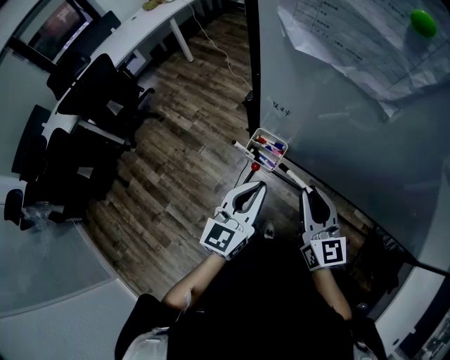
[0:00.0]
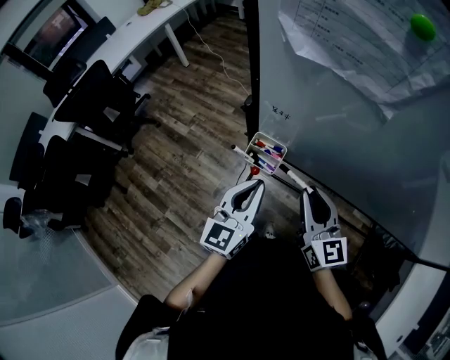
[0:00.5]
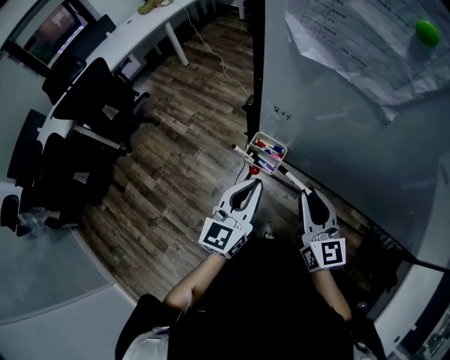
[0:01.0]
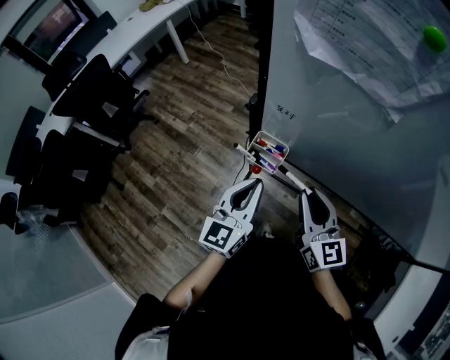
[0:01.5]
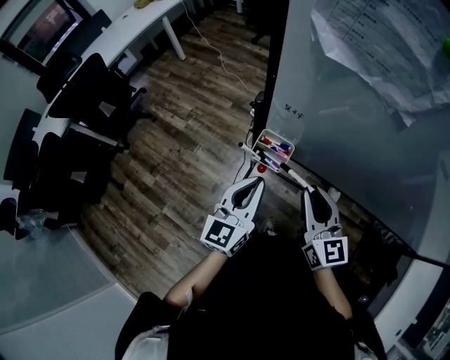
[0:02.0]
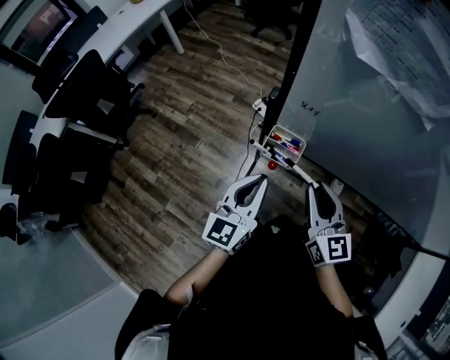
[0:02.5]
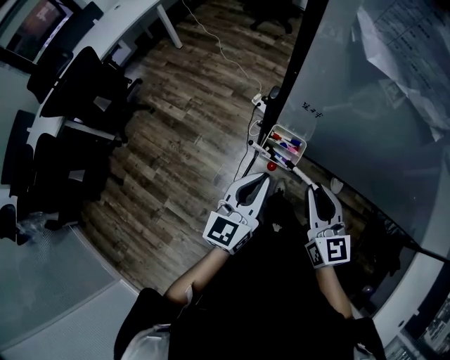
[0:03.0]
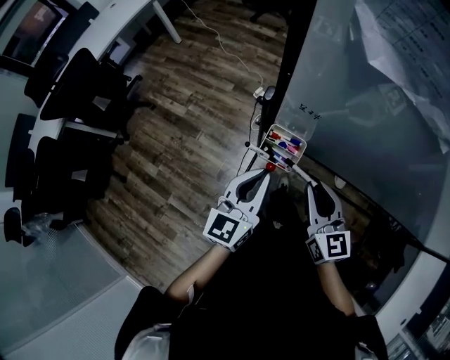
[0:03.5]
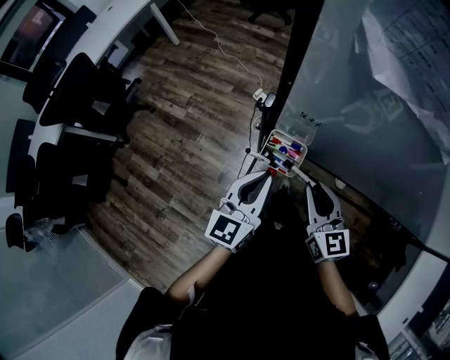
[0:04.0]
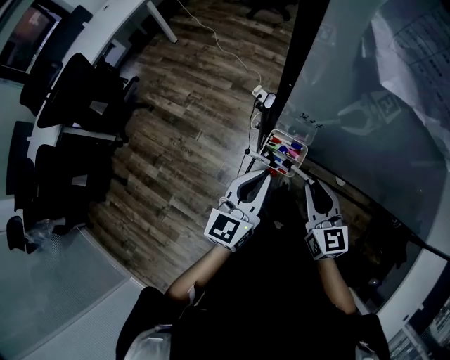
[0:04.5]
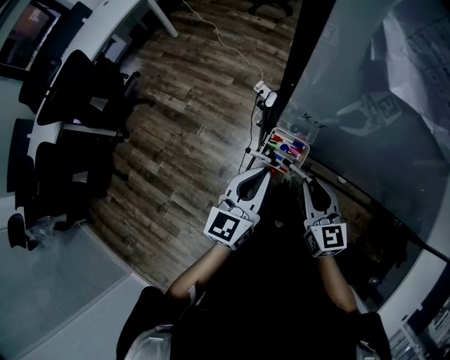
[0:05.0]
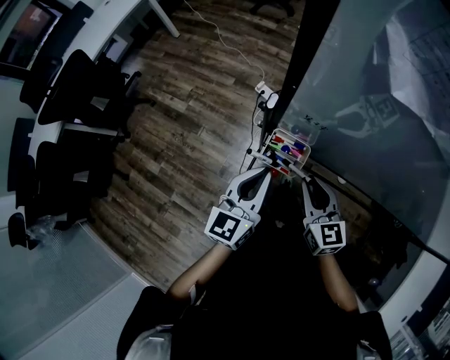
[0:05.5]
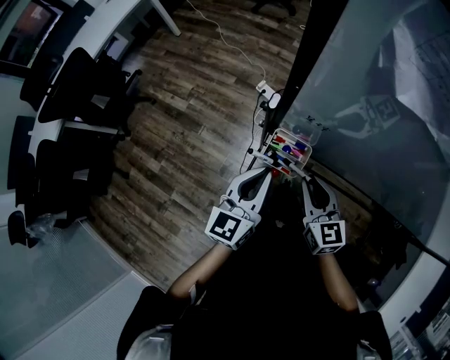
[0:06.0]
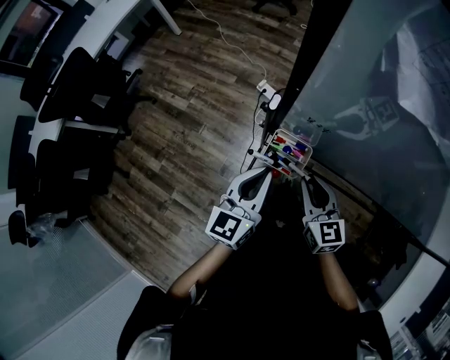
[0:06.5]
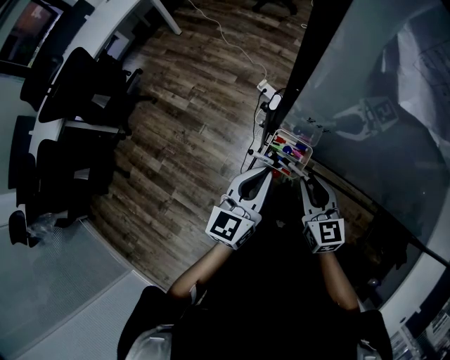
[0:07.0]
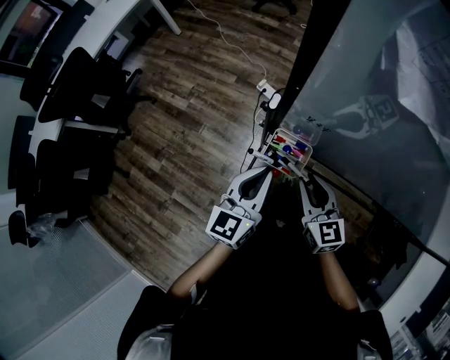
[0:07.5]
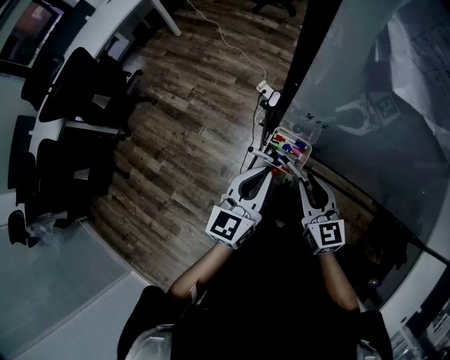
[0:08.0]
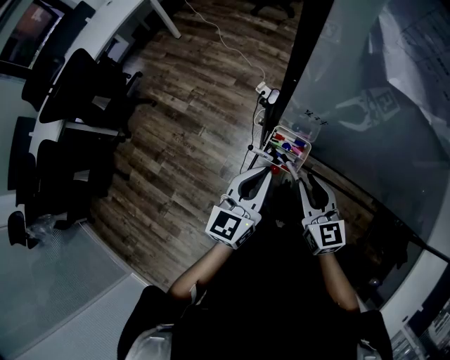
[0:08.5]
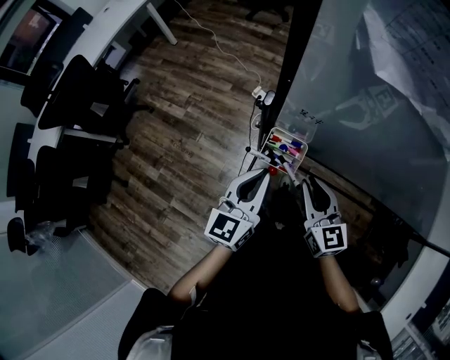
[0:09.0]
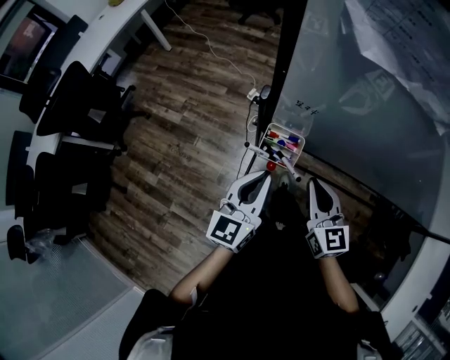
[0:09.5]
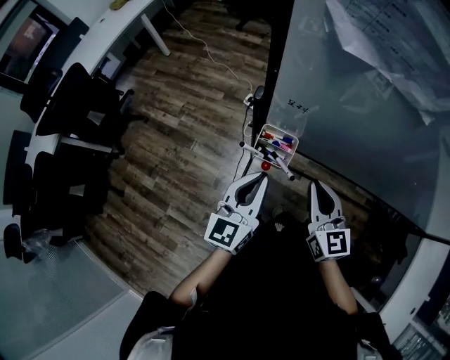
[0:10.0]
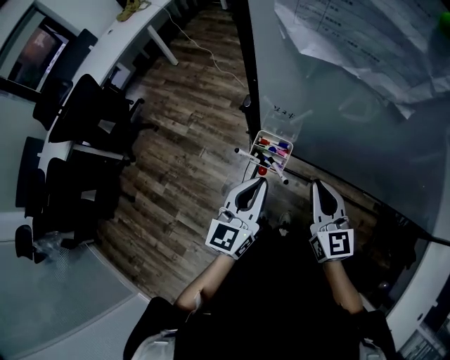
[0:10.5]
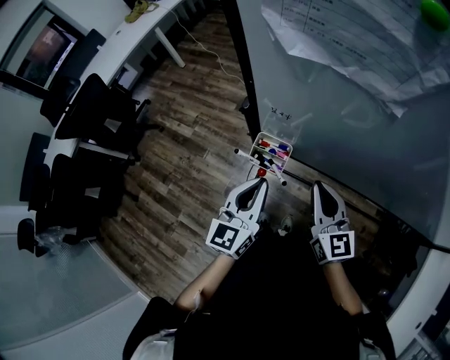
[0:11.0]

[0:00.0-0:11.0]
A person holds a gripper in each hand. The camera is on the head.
0:00.0 to 0:02.0: There are only small adjustments of the grippers.
0:02.0 to 0:03.5: The right gripper travels downward by approximately 5 cm.
0:03.5 to 0:05.5: The right gripper ends up some 5 cm from where it was.
0:05.5 to 0:07.5: Neither gripper changes place.
0:07.5 to 0:09.0: The grippers make only small movements.
0:09.0 to 0:11.0: The right gripper shifts about 10 cm to the right and upward; the left gripper changes place by some 5 cm.

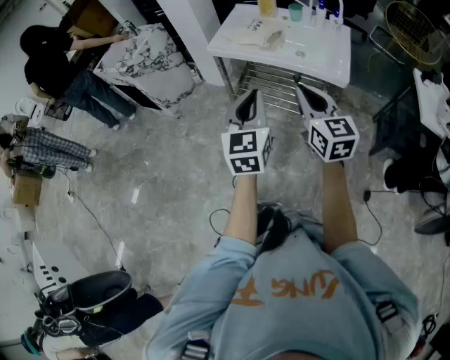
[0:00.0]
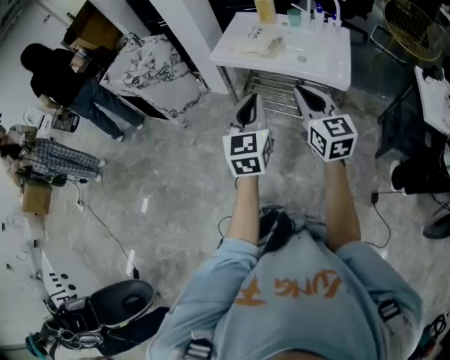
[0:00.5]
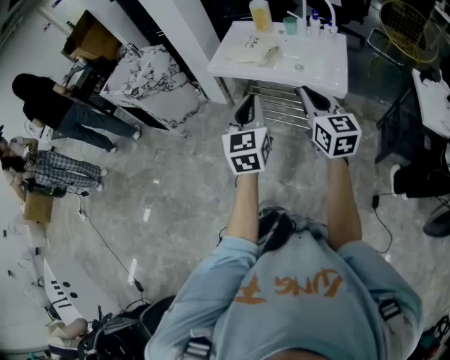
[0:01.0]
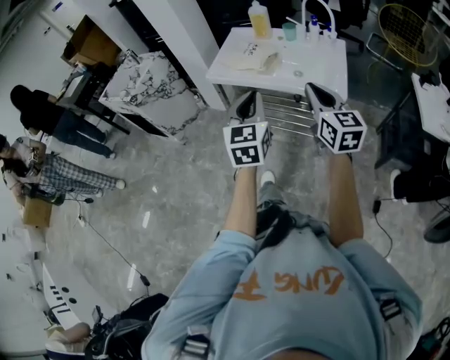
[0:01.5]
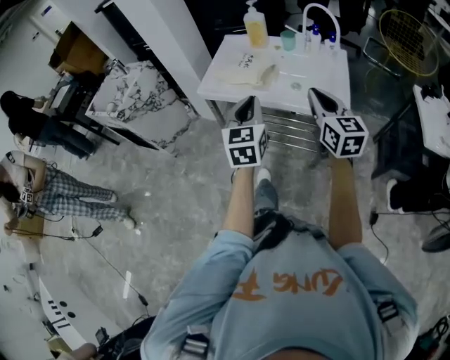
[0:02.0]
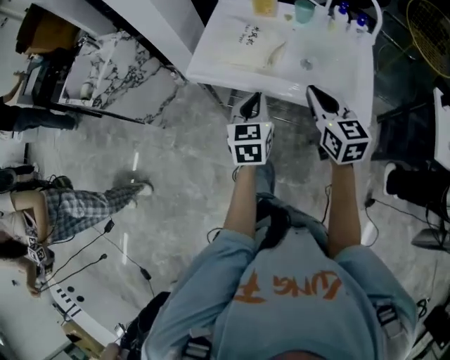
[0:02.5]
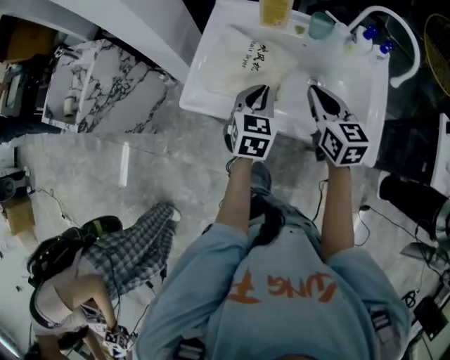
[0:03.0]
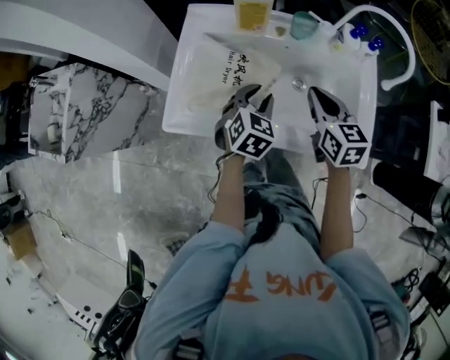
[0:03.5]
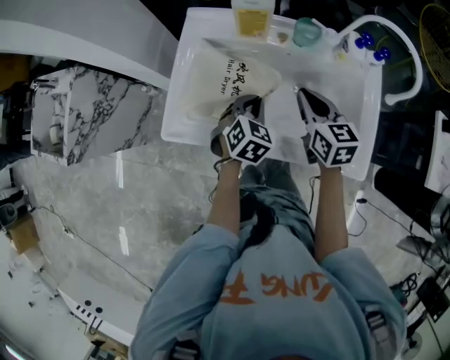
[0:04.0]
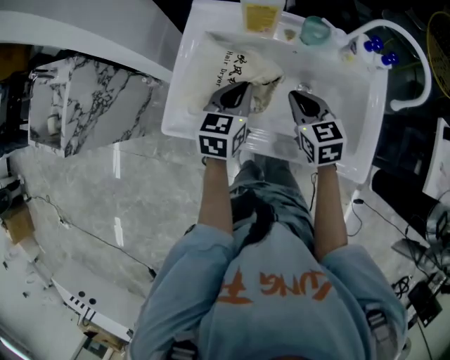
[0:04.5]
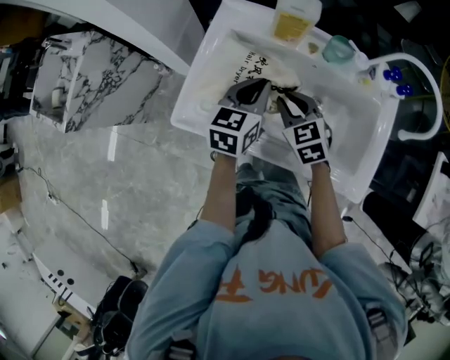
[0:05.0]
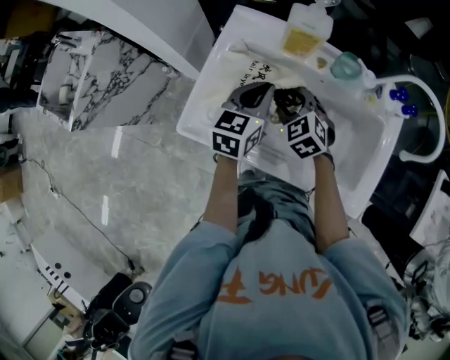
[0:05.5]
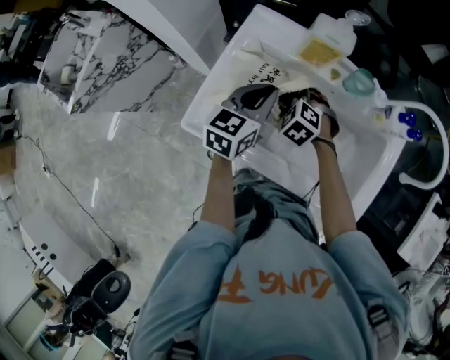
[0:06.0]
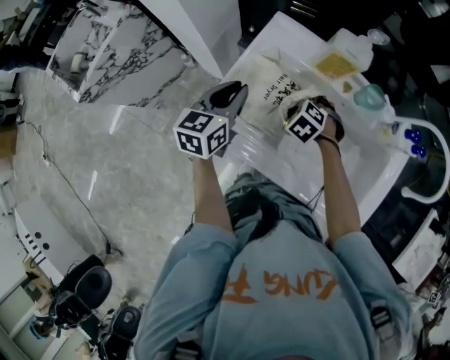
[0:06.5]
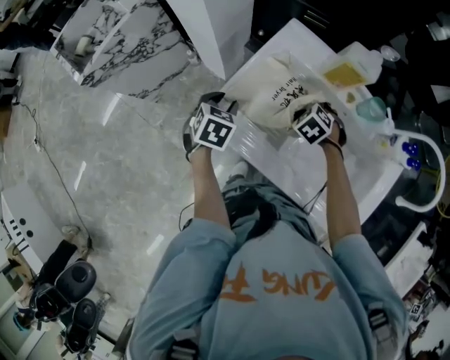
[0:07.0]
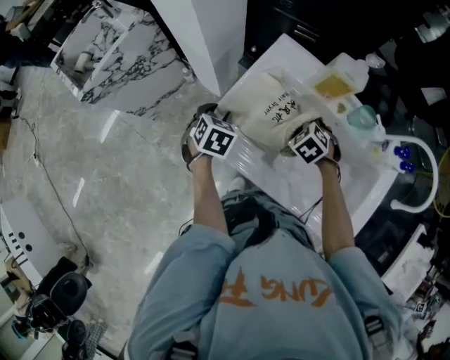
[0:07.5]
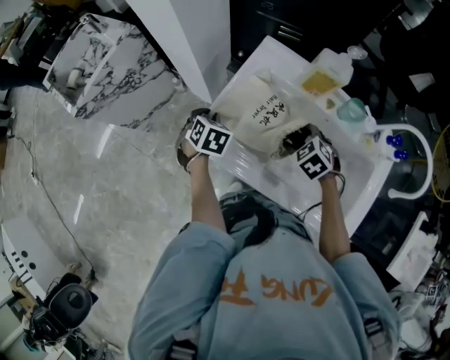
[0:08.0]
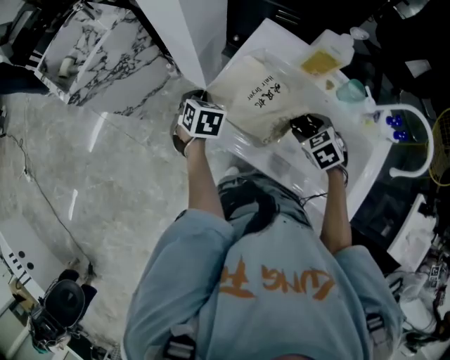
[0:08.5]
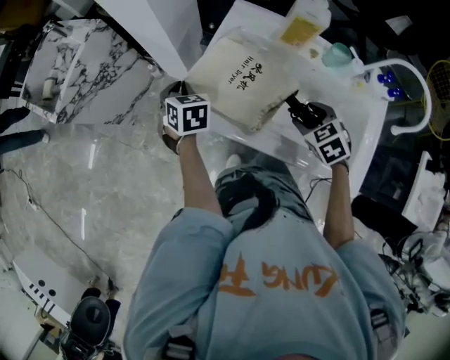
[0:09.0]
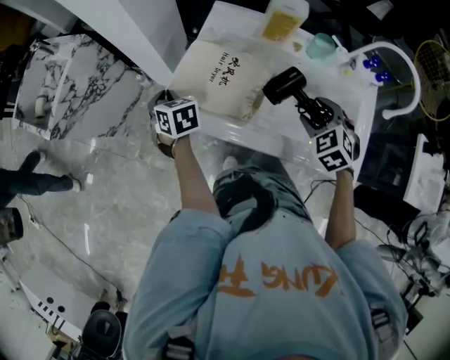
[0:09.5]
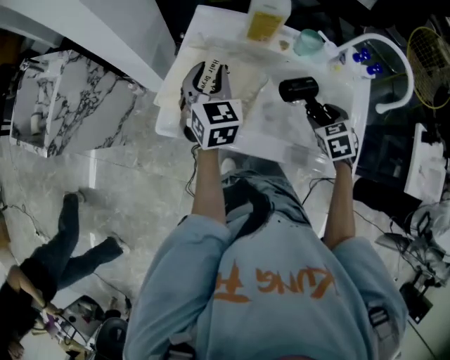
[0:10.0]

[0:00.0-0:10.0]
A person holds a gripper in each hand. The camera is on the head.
0:00.0 to 0:02.0: The left gripper moves forward, approximately 20 cm. Meanwhile the right gripper moves forward and to the right, some 20 cm.
0:02.0 to 0:04.0: Both grippers travel together forward and downward, approximately 40 cm. The left gripper tips its fingers downward by roughly 40 degrees, and opens and closes again; the right gripper turns by some 30 degrees.
0:04.0 to 0:06.0: The left gripper is displaced to the left, forward and upward by about 15 cm, and rotates some 40 degrees. Meanwhile the right gripper shifts some 20 cm to the left, downward and forward, twists about 60 degrees counterclockwise, seen from behind, and opens.
0:06.0 to 0:08.0: The right gripper shifts by some 5 cm; the left gripper moves approximately 20 cm, and tilts its fingers some 40 degrees downward.
0:08.0 to 0:10.0: The left gripper changes place by approximately 20 cm, and tilts its fingers some 40 degrees upward. Meanwhile the right gripper moves approximately 20 cm, and swivels roughly 40 degrees.

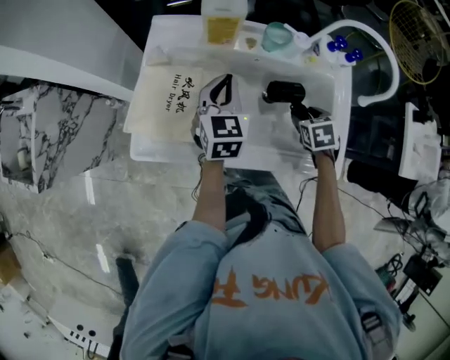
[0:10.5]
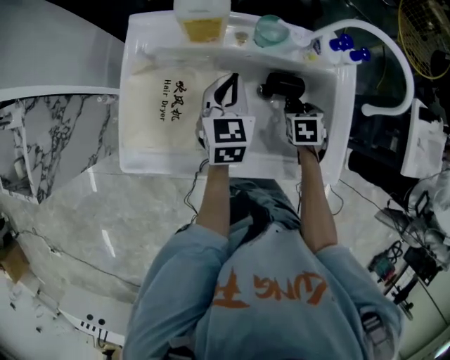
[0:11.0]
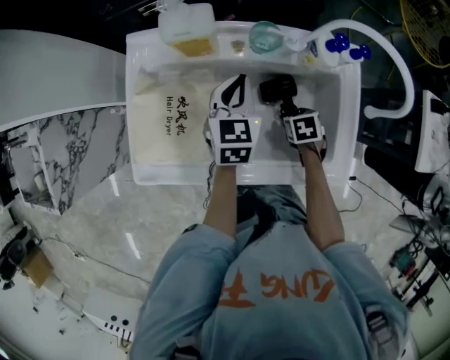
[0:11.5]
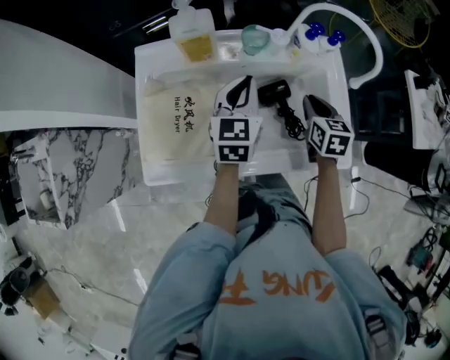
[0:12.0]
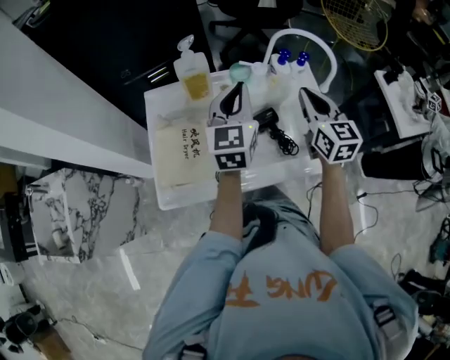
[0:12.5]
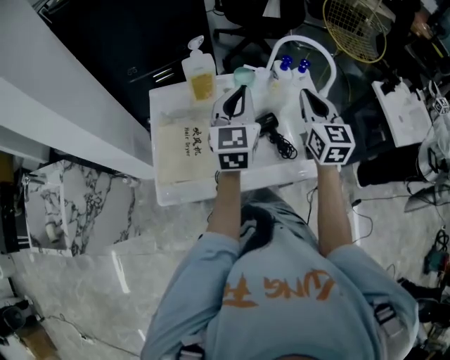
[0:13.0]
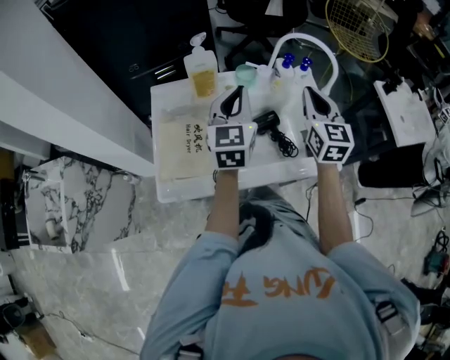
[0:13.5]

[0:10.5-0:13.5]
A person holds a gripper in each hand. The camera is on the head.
0:10.5 to 0:12.0: The right gripper shifts some 5 cm upward, changes its angle by about 40 degrees, and closes up; the left gripper goes about 10 cm to the right.
0:12.0 to 0:13.5: The right gripper travels upward by roughly 20 cm, and points its fingers roughly 30 degrees further upward; the left gripper heads upward, covering about 15 cm.

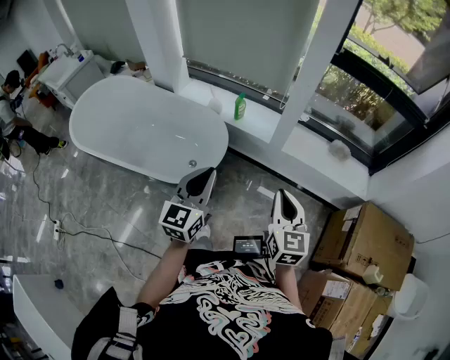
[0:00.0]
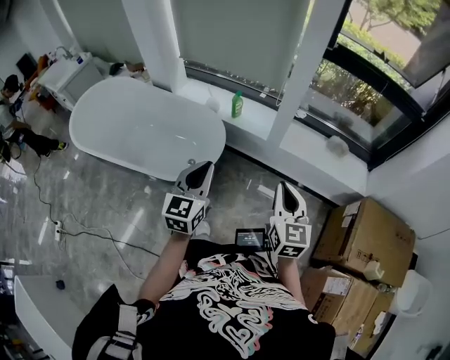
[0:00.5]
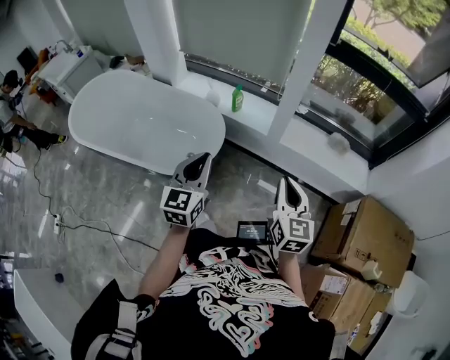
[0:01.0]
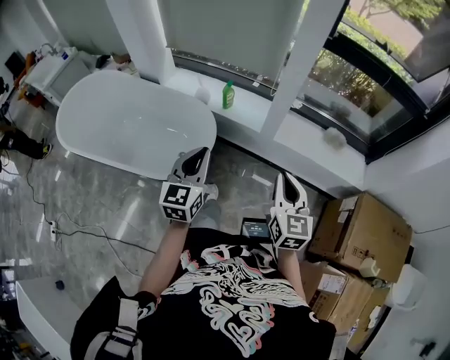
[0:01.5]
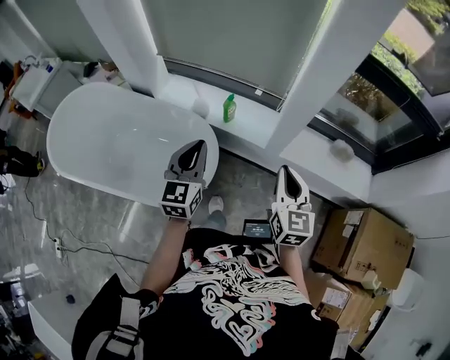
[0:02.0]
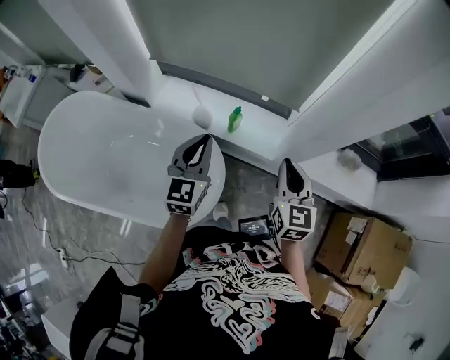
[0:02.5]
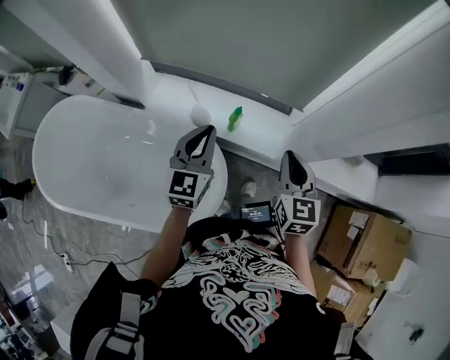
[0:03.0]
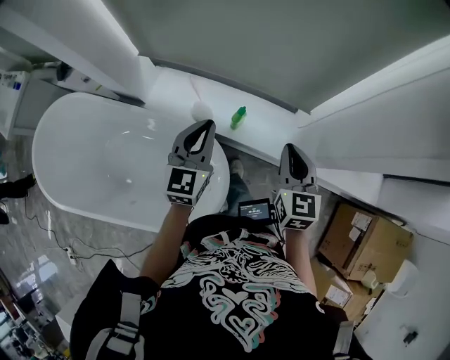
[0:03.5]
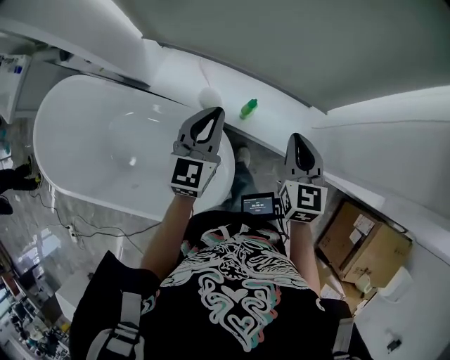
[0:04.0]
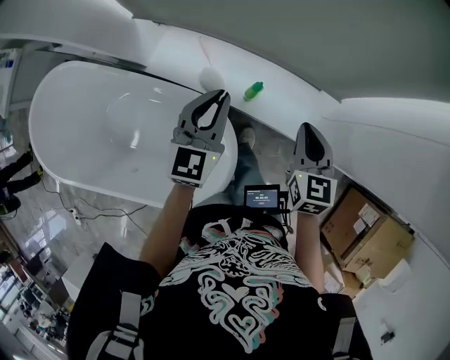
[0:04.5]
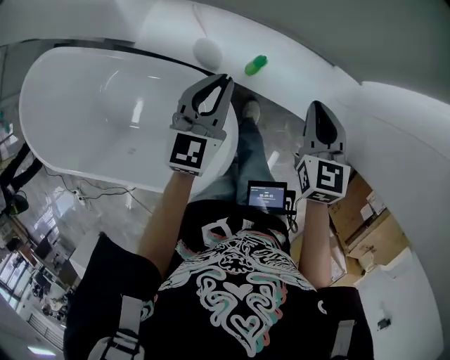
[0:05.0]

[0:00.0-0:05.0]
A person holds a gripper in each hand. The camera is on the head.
0:00.0 to 0:02.5: Both grippers are carried forward, some 40 cm.
0:02.5 to 0:05.0: The grippers both shift forward and downward by roughly 30 cm.
